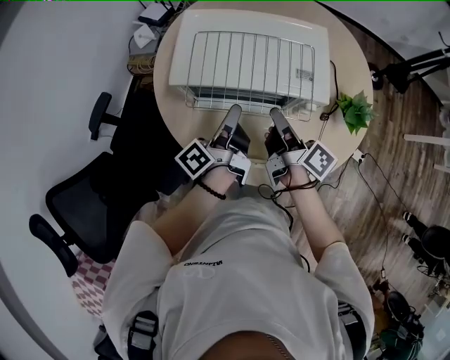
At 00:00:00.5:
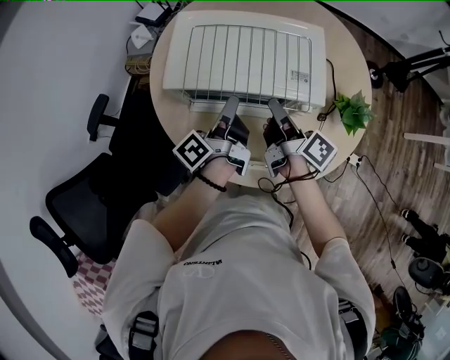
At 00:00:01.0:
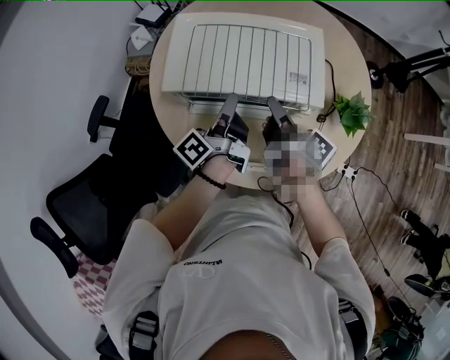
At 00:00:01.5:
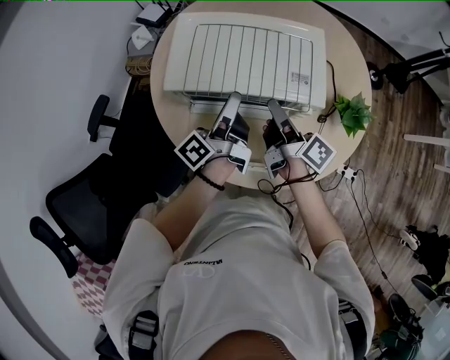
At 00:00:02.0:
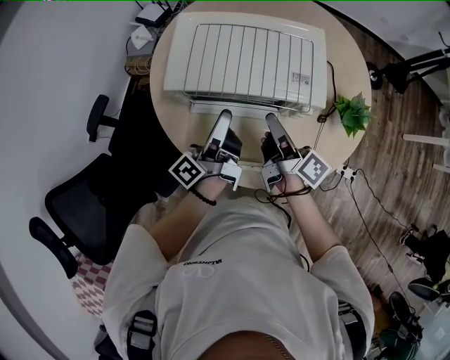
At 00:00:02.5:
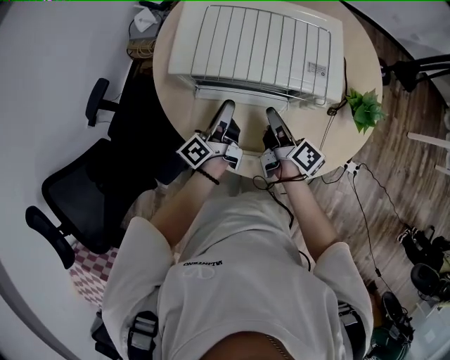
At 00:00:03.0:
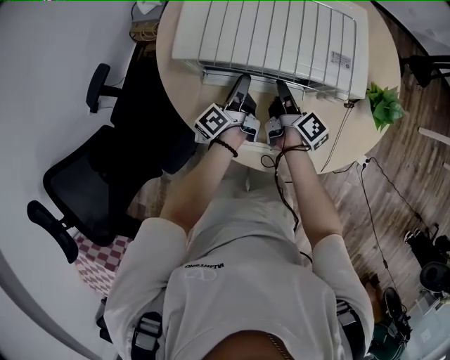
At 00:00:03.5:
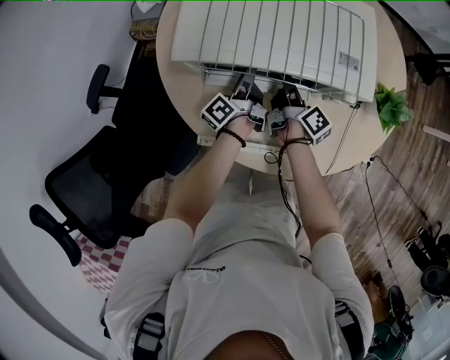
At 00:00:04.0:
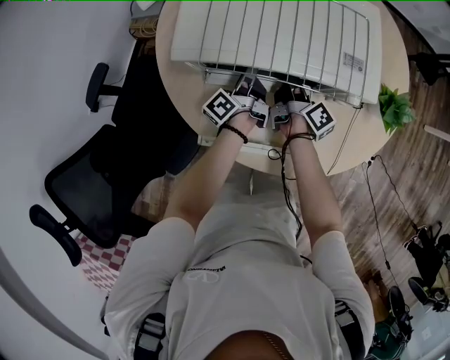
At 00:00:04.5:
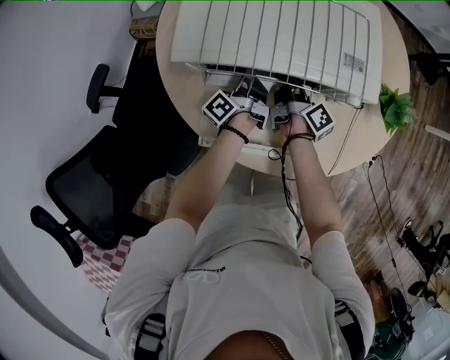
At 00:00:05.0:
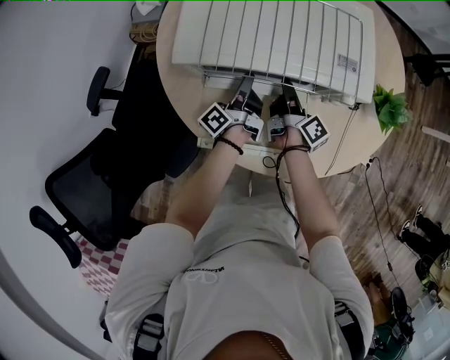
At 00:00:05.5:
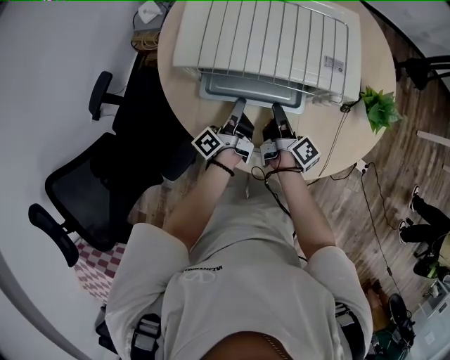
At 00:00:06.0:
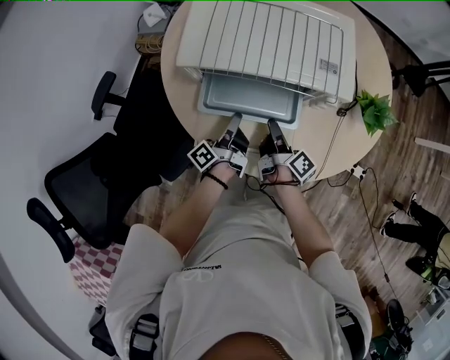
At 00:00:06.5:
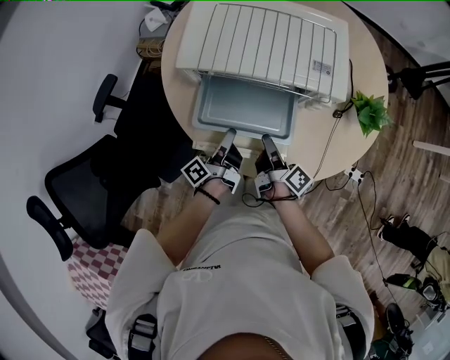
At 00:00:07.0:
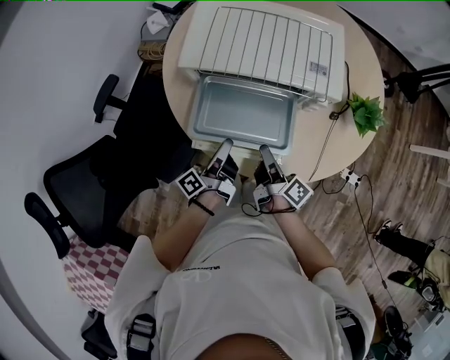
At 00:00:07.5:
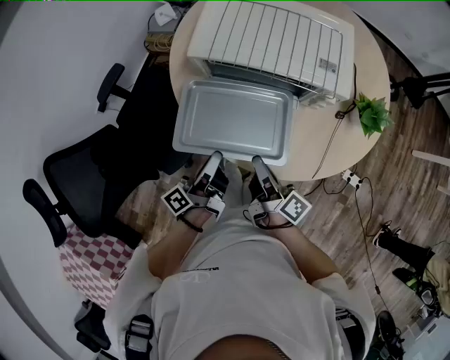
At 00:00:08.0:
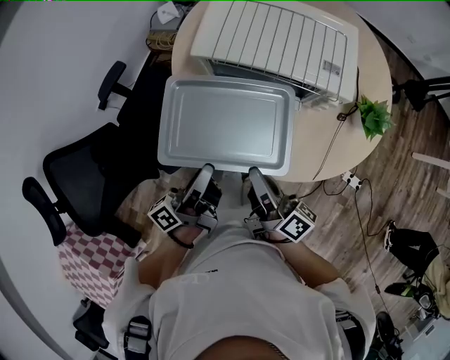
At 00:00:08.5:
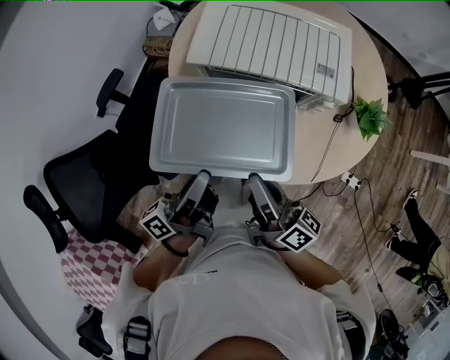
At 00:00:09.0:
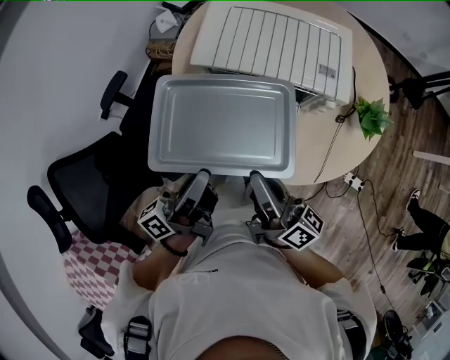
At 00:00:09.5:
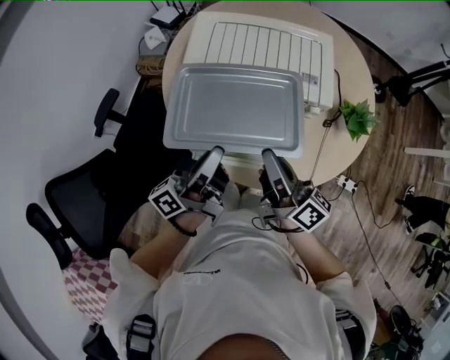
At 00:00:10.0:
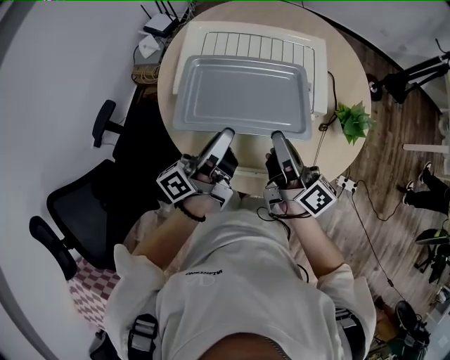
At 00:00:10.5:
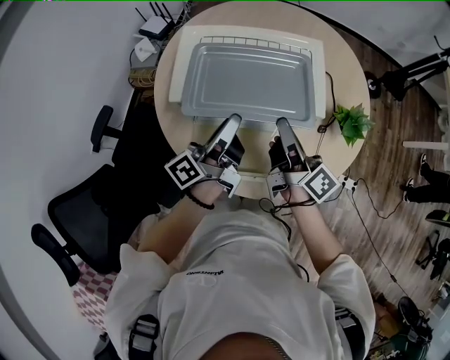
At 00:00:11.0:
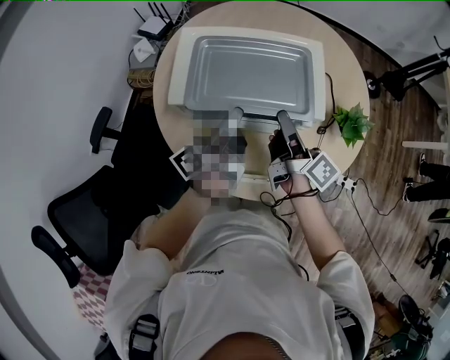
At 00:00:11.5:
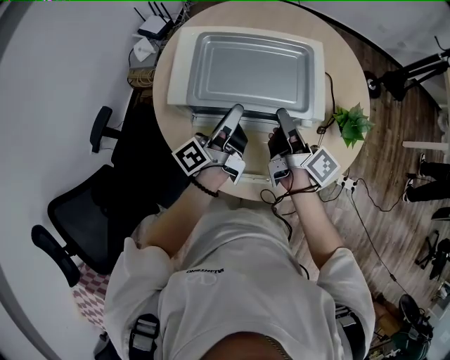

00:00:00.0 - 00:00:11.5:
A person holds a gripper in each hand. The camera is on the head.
00:00:00.0 - 00:00:02.0: The left gripper opens up.
00:00:02.0 - 00:00:04.0: Both grippers move downward and forward, roughly 25 cm.
00:00:04.0 - 00:00:06.0: Both grippers travel together backward, some 15 cm. The left gripper closes.
00:00:06.0 - 00:00:07.5: The grippers both shift backward and upward by some 15 cm.
00:00:07.5 - 00:00:09.5: The left gripper shifts approximately 15 cm upward and forward; the right gripper heads upward, covering some 15 cm, and rotates some 20 degrees.
00:00:09.5 - 00:00:11.5: The two grippers go about 15 cm forward. The right gripper turns by approximately 20 degrees.

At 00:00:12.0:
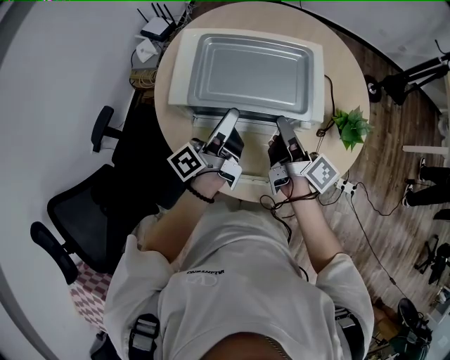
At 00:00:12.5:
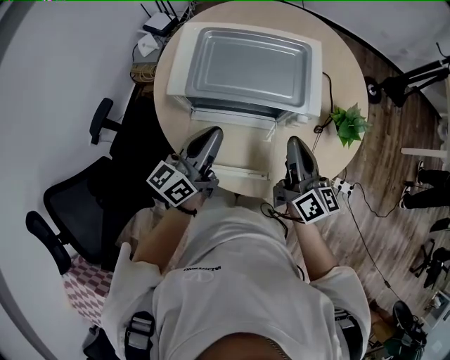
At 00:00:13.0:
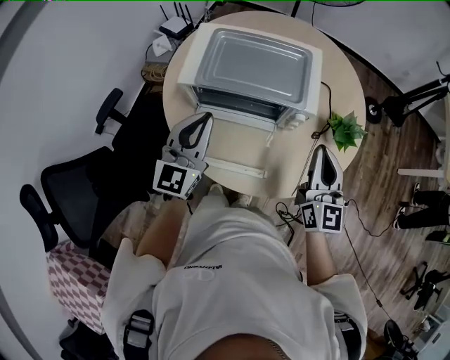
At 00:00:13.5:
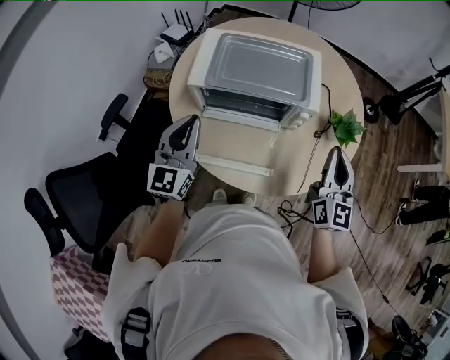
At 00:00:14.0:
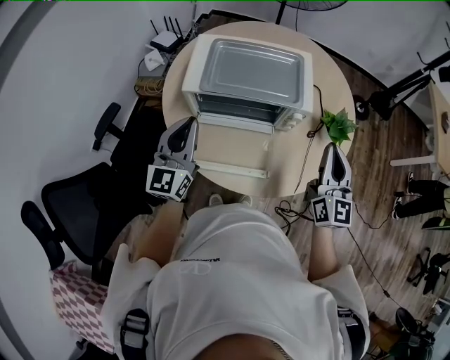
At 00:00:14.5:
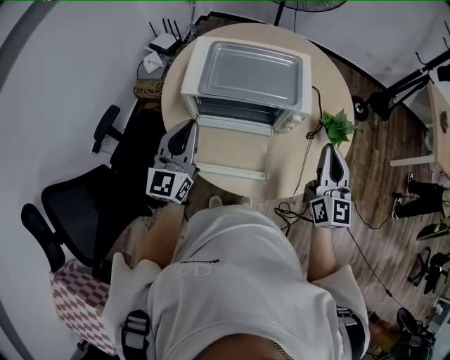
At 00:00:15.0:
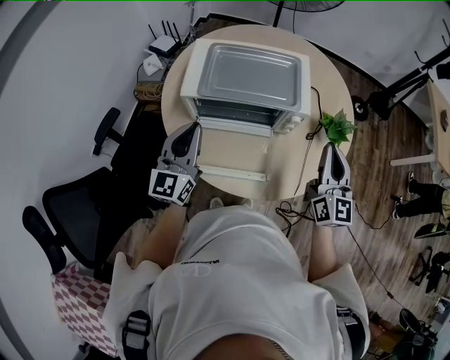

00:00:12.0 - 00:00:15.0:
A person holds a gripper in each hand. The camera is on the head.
00:00:12.0 - 00:00:13.5: The left gripper moves backward, to the left and upward, about 20 cm, rolls clockwise, seen from behind, by about 90 degrees, and closes; the right gripper moves to the right, backward and upward, some 20 cm, and twists some 80 degrees counterclockwise, seen from behind.
00:00:13.5 - 00:00:15.0: The grippers stay close to where they were, moving slightly.

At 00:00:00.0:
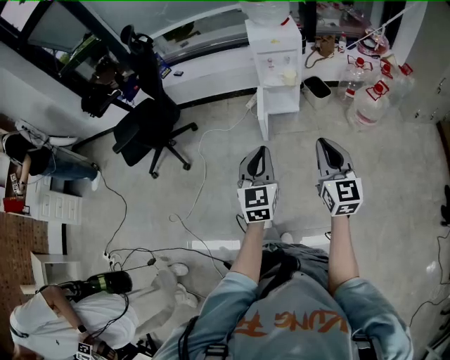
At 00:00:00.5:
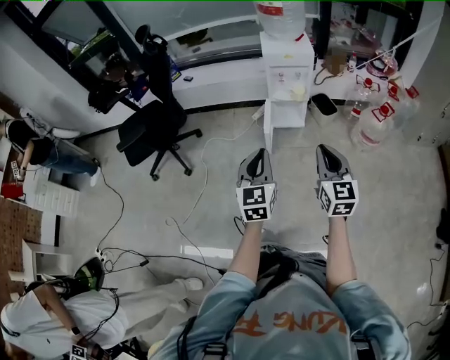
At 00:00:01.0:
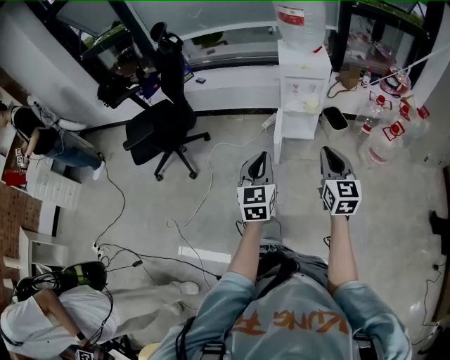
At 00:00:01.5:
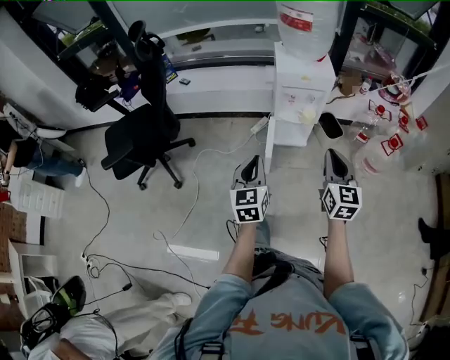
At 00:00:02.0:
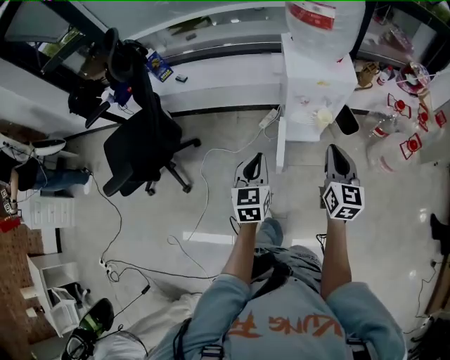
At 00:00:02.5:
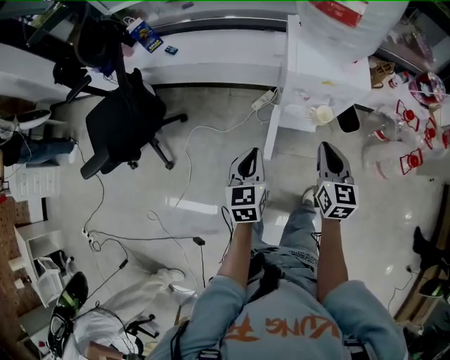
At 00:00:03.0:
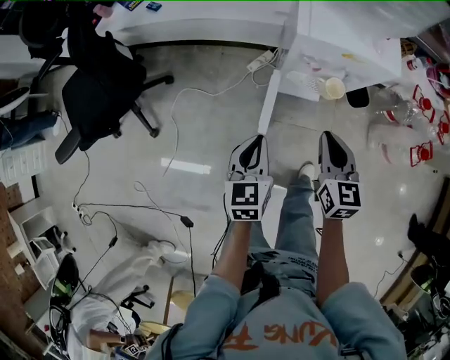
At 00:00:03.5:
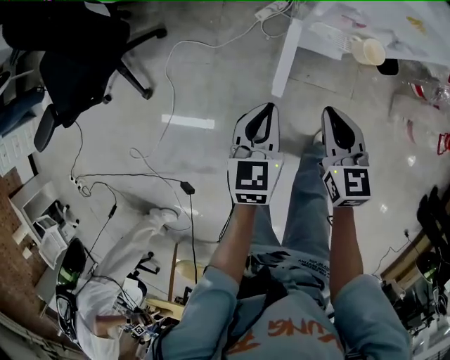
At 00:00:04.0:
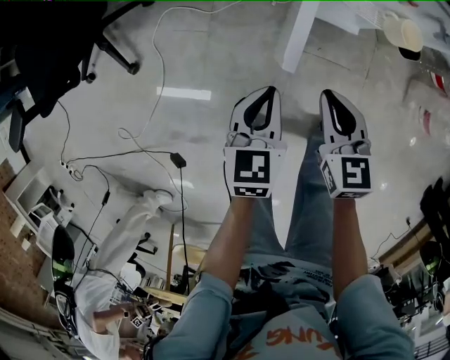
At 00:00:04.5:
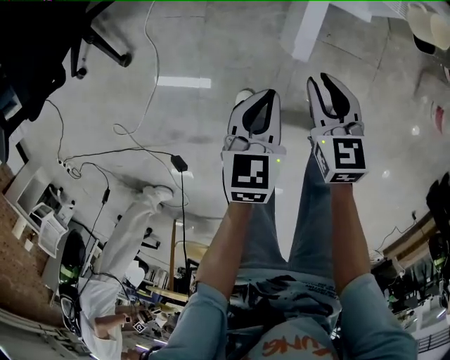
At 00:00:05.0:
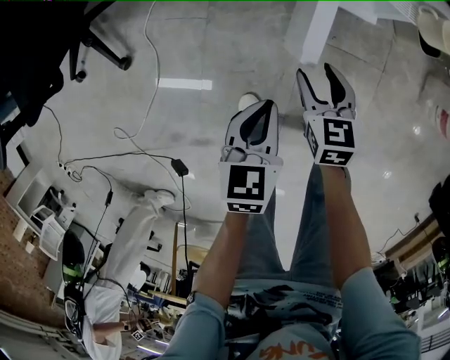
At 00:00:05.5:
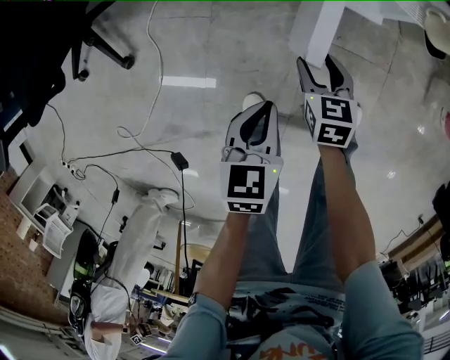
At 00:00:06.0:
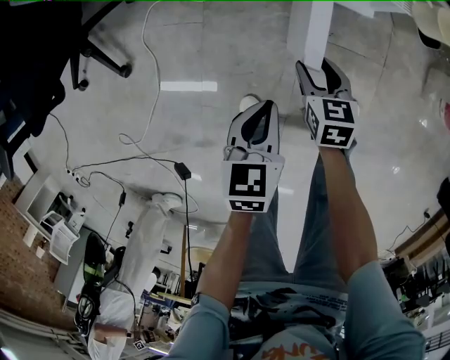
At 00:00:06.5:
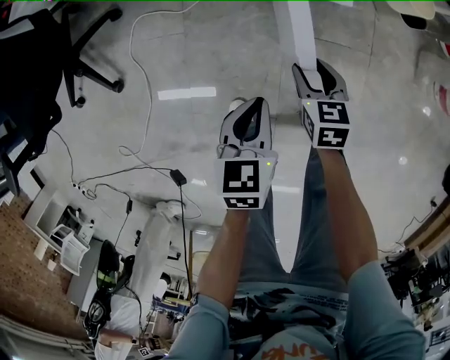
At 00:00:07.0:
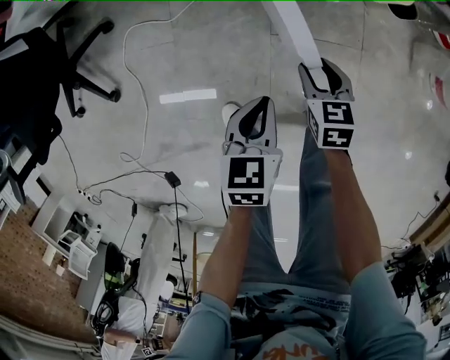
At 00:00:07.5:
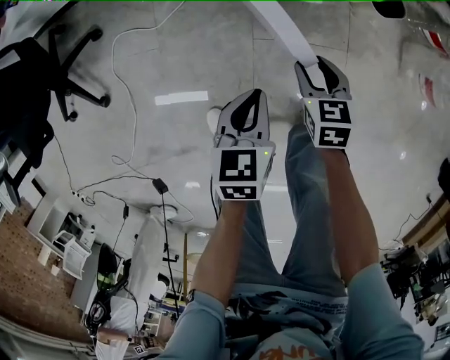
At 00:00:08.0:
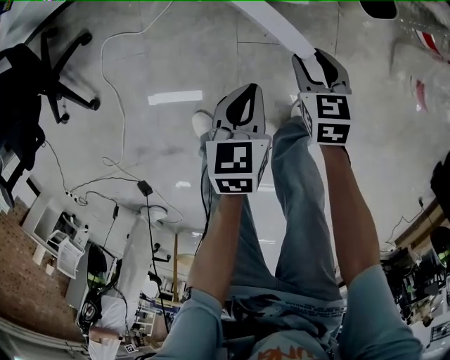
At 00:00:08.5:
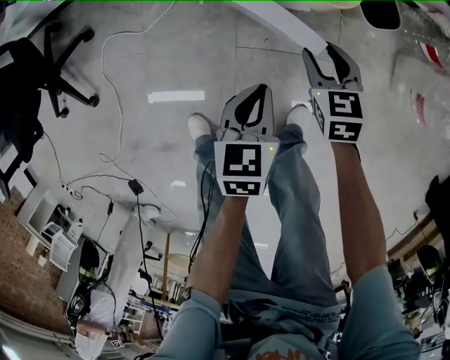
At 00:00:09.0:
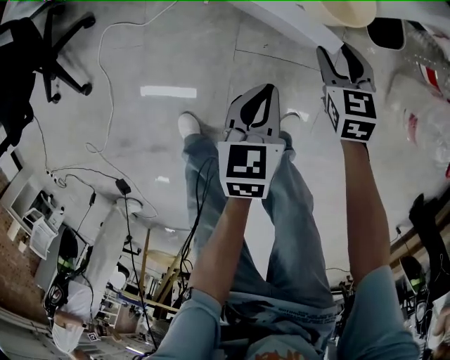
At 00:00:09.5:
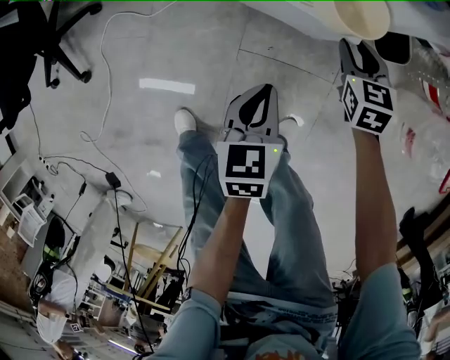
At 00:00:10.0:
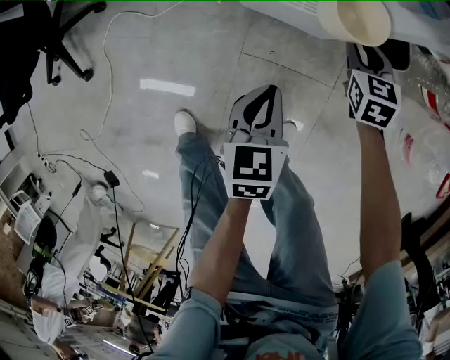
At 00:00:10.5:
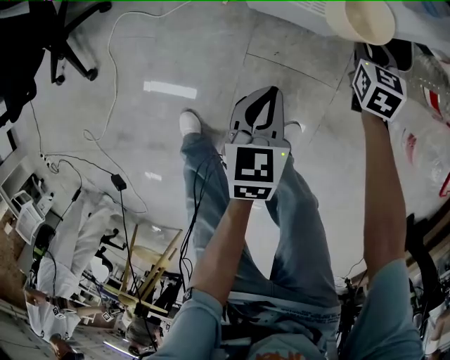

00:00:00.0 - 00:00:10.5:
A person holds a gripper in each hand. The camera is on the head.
00:00:00.0 - 00:00:02.0: The two grippers travel together, forward, roughly 40 cm.
00:00:02.0 - 00:00:04.0: Both grippers travel together downward, roughly 35 cm. The right gripper turns by roughly 40 degrees.
00:00:04.0 - 00:00:06.5: The left gripper goes approximately 10 cm downward, while the right gripper travels downward by some 20 cm, and opens its fingers.
00:00:06.5 - 00:00:08.5: The two grippers go roughly 25 cm to the right and forward.
00:00:08.5 - 00:00:10.5: The right gripper is displaced forward and to the right by about 15 cm, and closes its fingers.

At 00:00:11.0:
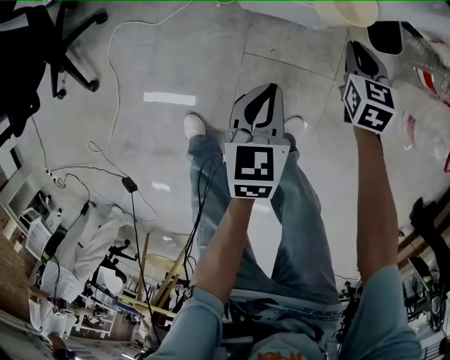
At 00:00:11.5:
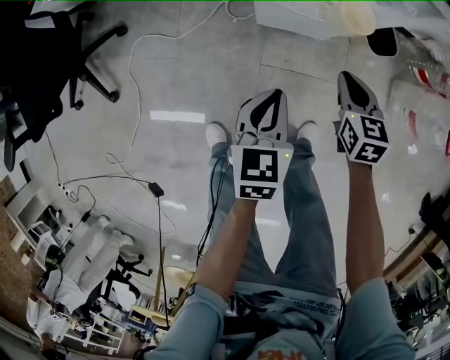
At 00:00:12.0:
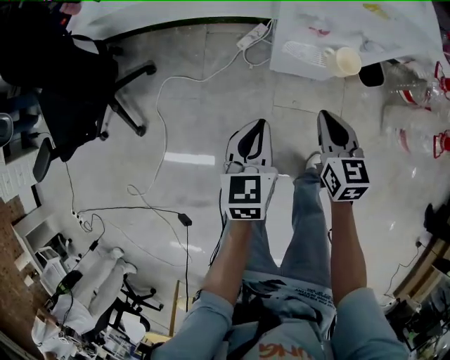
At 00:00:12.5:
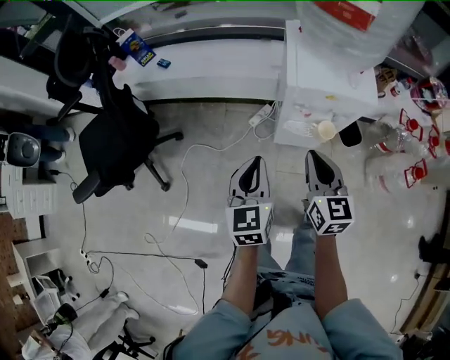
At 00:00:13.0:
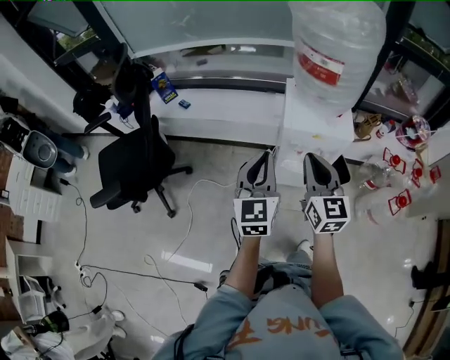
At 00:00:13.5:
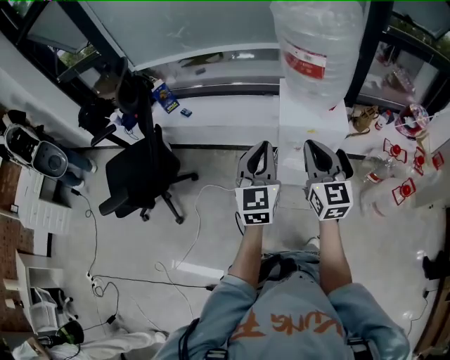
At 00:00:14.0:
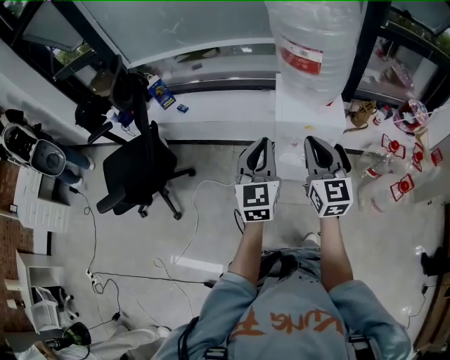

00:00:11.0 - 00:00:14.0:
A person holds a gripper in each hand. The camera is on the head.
00:00:11.0 - 00:00:12.5: Both grippers travel together upward and to the left, some 50 cm. The left gripper turns by roughly 20 degrees. The right gripper turns by some 30 degrees.
00:00:12.5 - 00:00:14.0: Both grippers travel together upward, approximately 20 cm.
